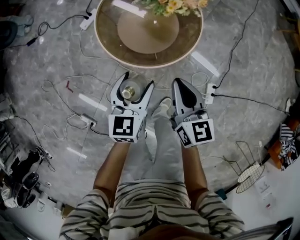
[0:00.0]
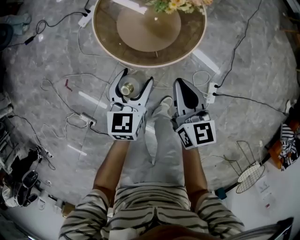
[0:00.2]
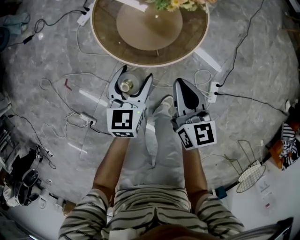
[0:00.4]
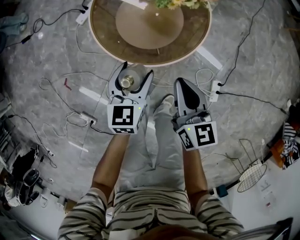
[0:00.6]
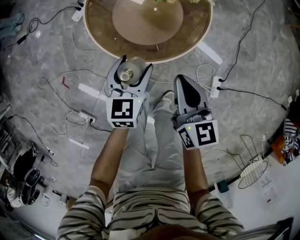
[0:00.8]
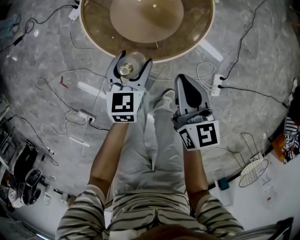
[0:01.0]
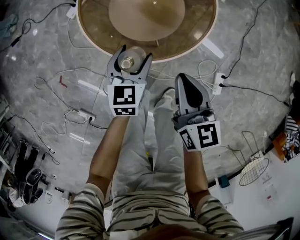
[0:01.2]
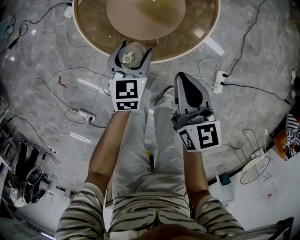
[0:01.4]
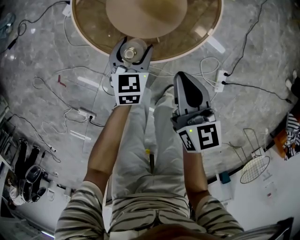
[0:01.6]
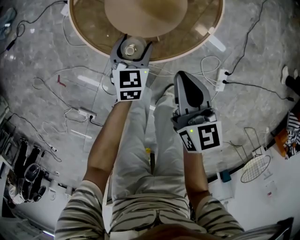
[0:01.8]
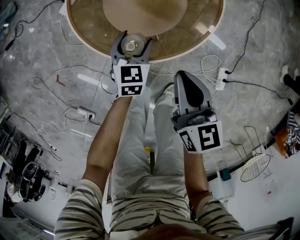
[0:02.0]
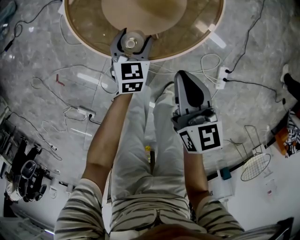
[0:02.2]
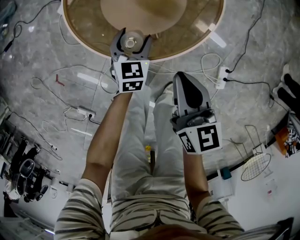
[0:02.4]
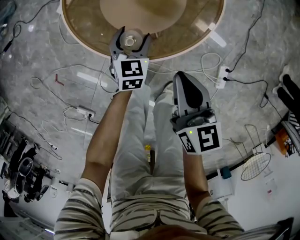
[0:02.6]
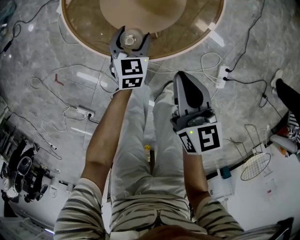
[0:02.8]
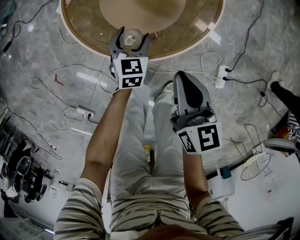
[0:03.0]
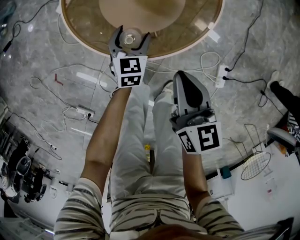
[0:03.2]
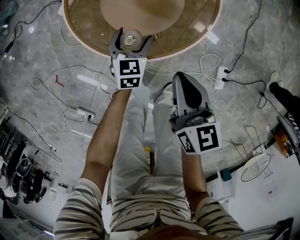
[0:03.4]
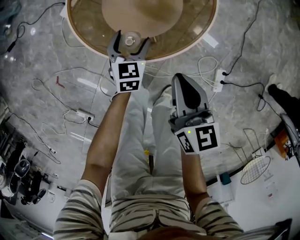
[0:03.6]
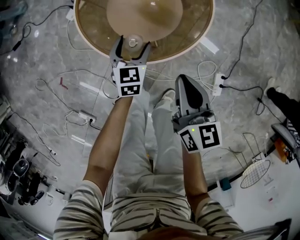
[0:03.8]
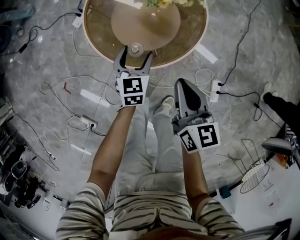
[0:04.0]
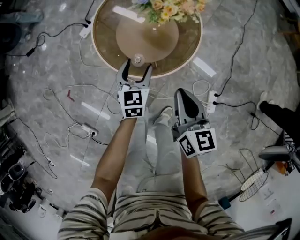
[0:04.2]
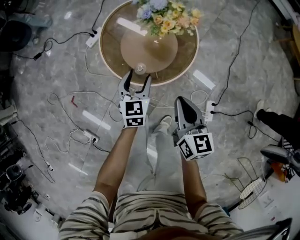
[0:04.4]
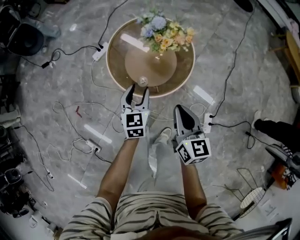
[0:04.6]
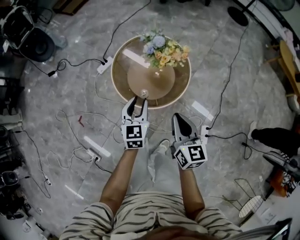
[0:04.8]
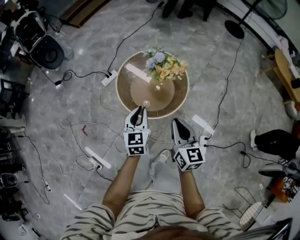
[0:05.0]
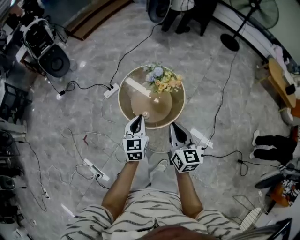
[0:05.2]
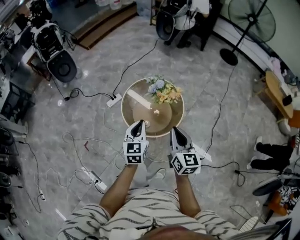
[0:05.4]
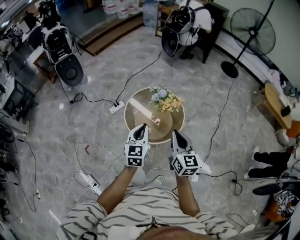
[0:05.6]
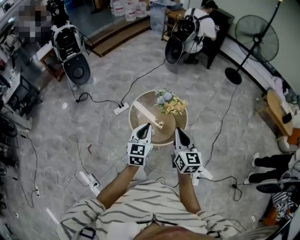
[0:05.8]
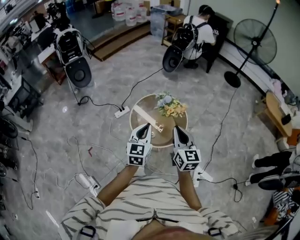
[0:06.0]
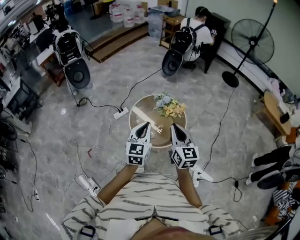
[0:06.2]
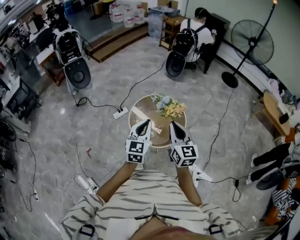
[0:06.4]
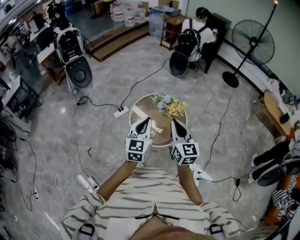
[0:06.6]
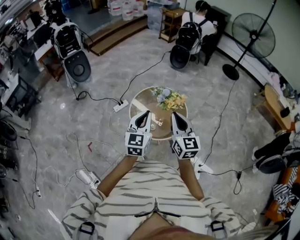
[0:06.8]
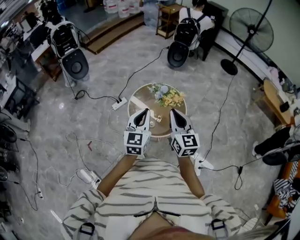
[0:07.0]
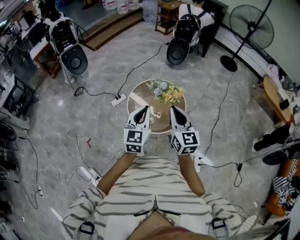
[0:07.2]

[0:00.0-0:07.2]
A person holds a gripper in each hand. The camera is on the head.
0:00.0 to 0:01.4: The left gripper shifts about 20 cm downward and forward, while the right gripper is displaced downward by approximately 10 cm.
0:01.4 to 0:02.8: The left gripper is displaced downward by approximately 10 cm.
0:02.8 to 0:04.4: The left gripper travels upward by approximately 25 cm, while the right gripper travels upward by approximately 15 cm.
0:04.4 to 0:05.8: The two grippers go about 35 cm upward. The right gripper swivels some 20 degrees. The left gripper closes.
0:05.8 to 0:07.2: The right gripper ends up approximately 5 cm from where it was, while the left gripper moves approximately 5 cm.
